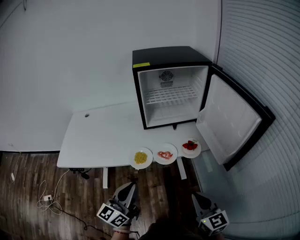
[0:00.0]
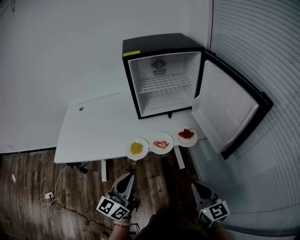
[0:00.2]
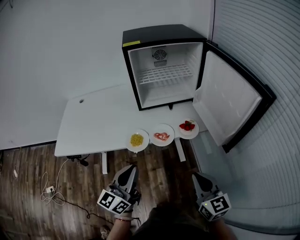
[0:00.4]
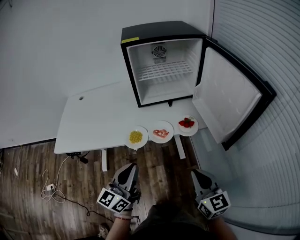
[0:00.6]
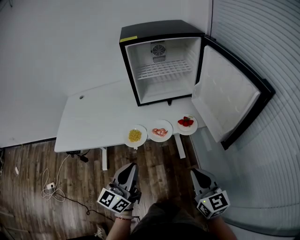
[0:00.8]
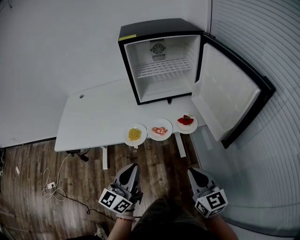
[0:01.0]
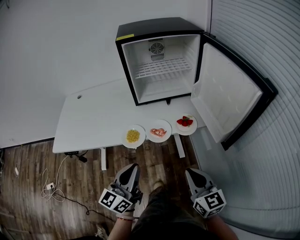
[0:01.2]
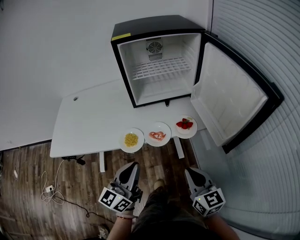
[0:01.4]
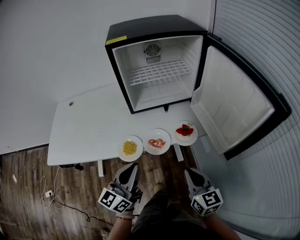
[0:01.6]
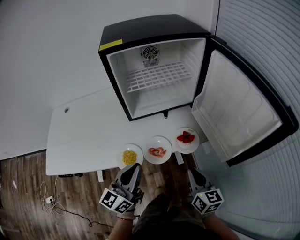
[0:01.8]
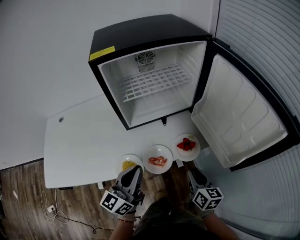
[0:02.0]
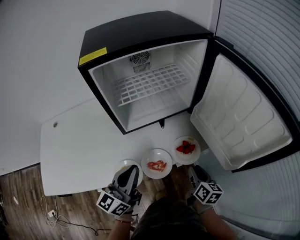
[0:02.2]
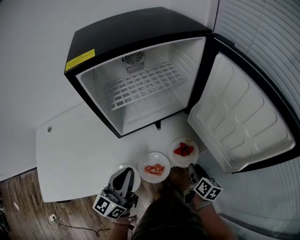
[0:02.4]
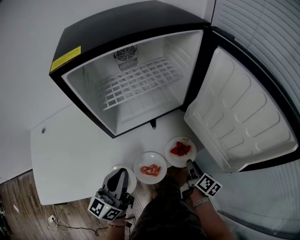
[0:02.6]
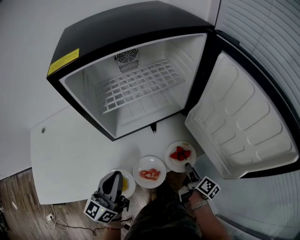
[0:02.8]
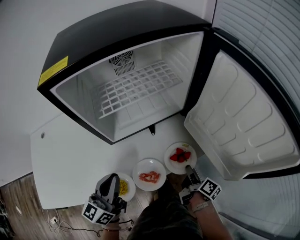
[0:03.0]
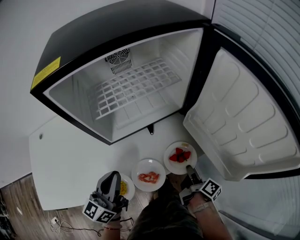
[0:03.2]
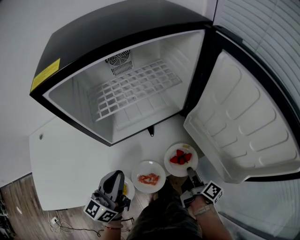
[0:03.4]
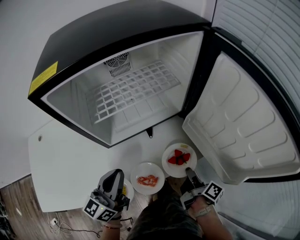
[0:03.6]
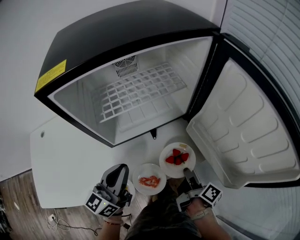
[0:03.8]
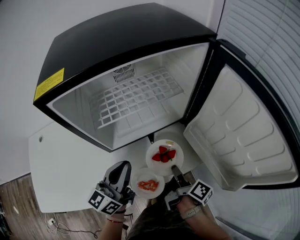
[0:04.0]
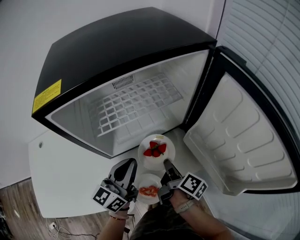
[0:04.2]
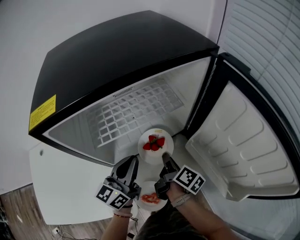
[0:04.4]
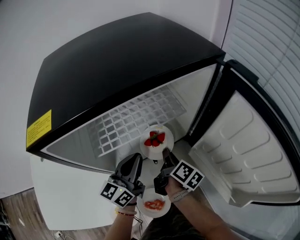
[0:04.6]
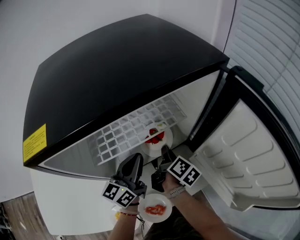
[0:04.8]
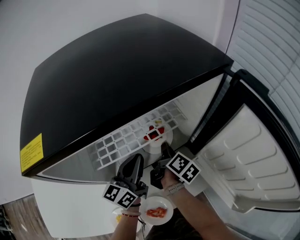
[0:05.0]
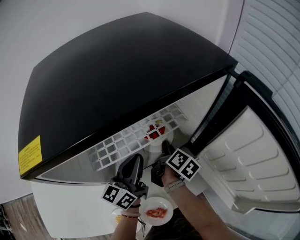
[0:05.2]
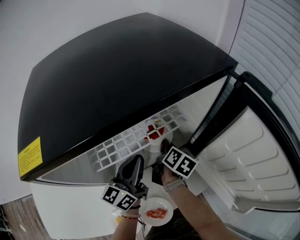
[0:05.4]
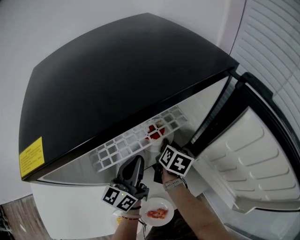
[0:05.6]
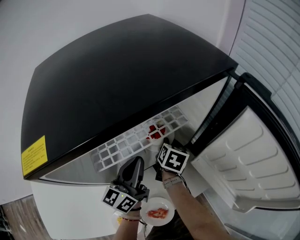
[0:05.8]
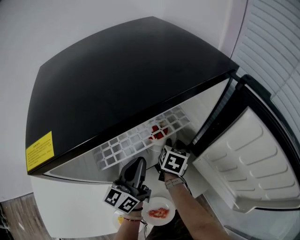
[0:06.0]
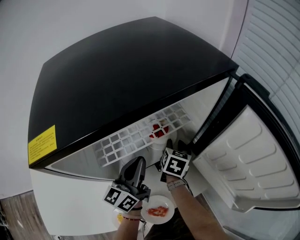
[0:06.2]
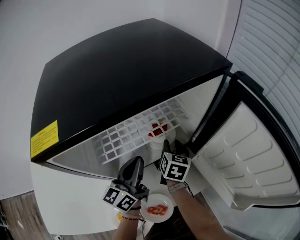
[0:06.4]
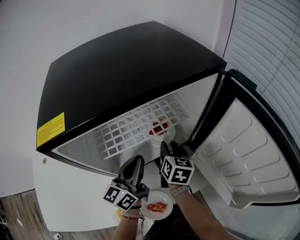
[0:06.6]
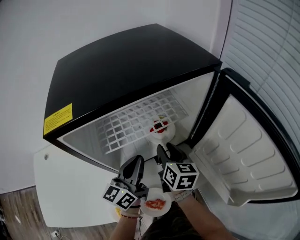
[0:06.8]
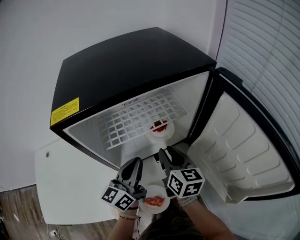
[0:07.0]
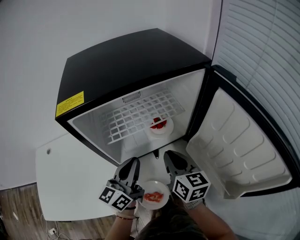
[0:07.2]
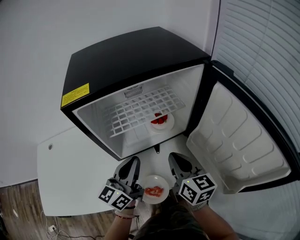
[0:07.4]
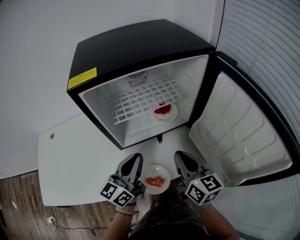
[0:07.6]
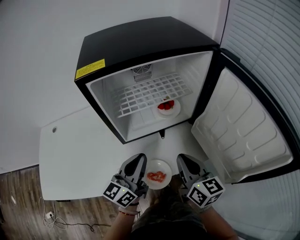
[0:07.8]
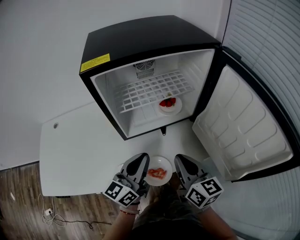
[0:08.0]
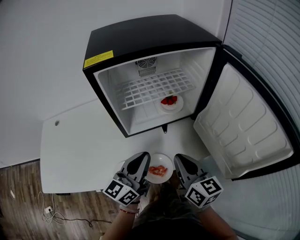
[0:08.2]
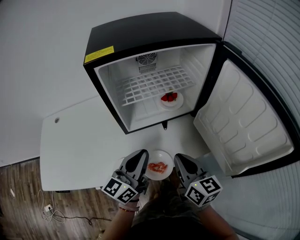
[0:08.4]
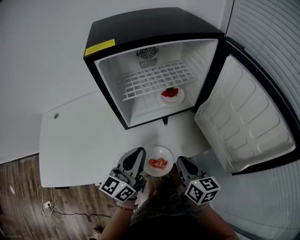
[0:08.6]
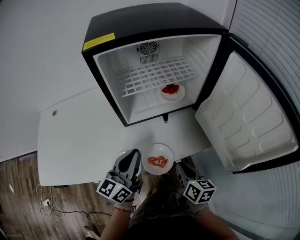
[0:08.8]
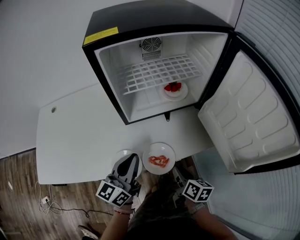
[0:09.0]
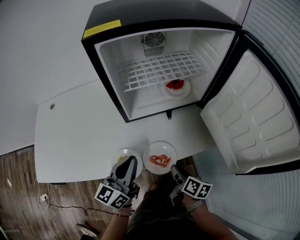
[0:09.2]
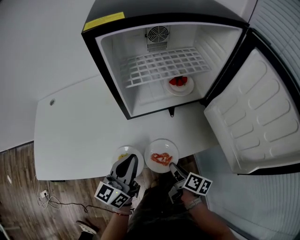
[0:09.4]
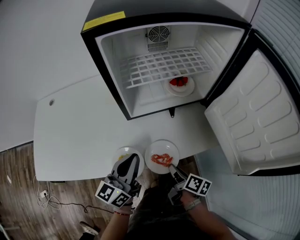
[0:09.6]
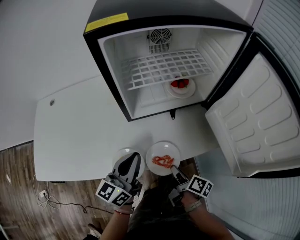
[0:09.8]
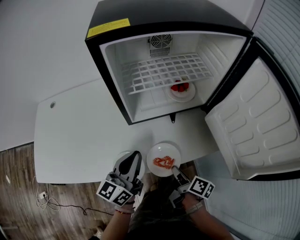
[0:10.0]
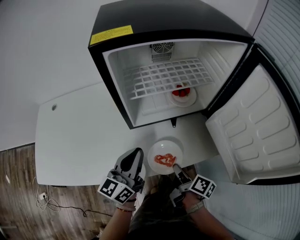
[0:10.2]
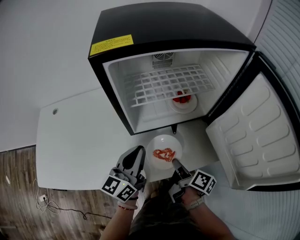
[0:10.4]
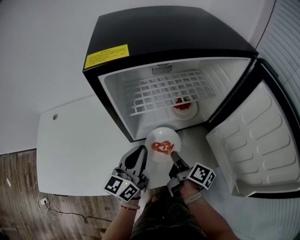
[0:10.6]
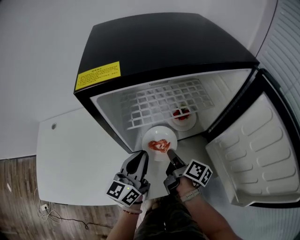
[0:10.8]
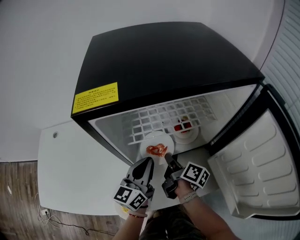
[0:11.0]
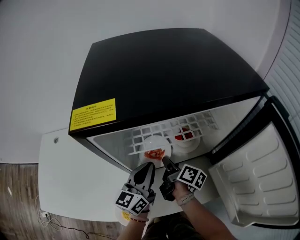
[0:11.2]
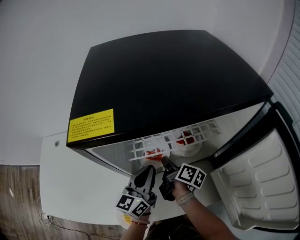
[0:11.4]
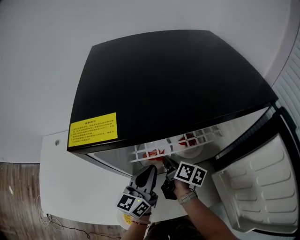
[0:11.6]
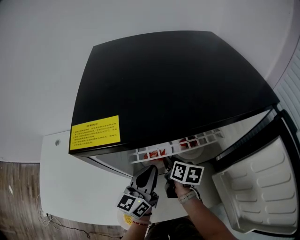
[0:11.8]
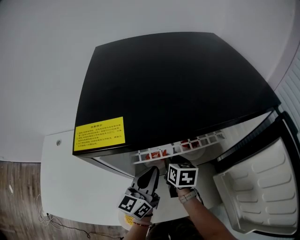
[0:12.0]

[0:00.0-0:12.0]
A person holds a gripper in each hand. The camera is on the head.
0:00.0 to 0:01.6: The left gripper goes about 10 cm forward and to the right; the right gripper travels forward and downward by roughly 15 cm.
0:01.6 to 0:03.0: The left gripper travels forward and to the left by some 20 cm. The right gripper shifts approximately 25 cm forward and downward, rotates around the line of its fingers by approximately 70 degrees, clockwise from behind, and opens, then closes again.
0:03.0 to 0:04.4: The right gripper is displaced forward, to the left and upward by some 20 cm. Meanwhile the left gripper goes approximately 15 cm forward.
0:04.4 to 0:06.0: The left gripper goes roughly 5 cm forward; the right gripper is displaced forward by some 15 cm, twists approximately 40 degrees counterclockwise, seen from behind, and opens its fingers.
0:06.0 to 0:07.6: The left gripper moves backward, approximately 15 cm. Meanwhile the right gripper moves backward and upward, some 30 cm, angles its fingers upward, by roughly 30 degrees, and closes.
0:07.6 to 0:09.0: The right gripper shifts approximately 25 cm downward and backward, rotates roughly 30 degrees, and opens up. The left gripper is displaced backward and downward by about 10 cm.
0:09.0 to 0:10.4: Both grippers move forward, about 10 cm. The right gripper swivels some 30 degrees.
0:10.4 to 0:12.0: The left gripper heads forward, covering approximately 15 cm, while the right gripper goes some 25 cm forward, and twists approximately 50 degrees counterclockwise, seen from behind.

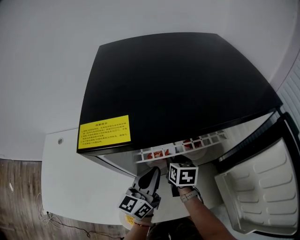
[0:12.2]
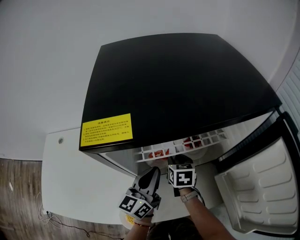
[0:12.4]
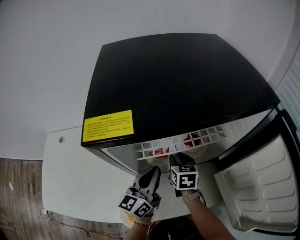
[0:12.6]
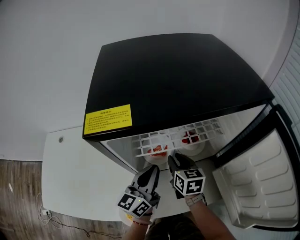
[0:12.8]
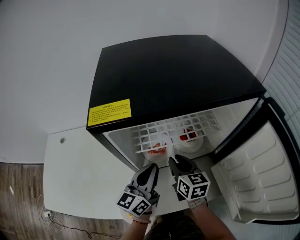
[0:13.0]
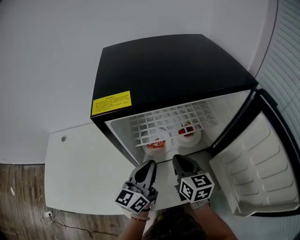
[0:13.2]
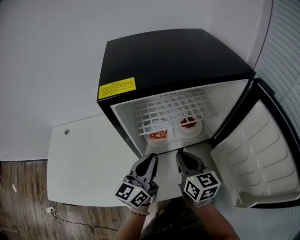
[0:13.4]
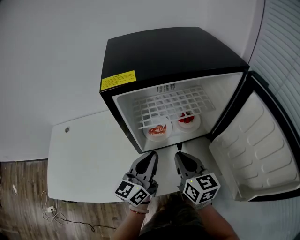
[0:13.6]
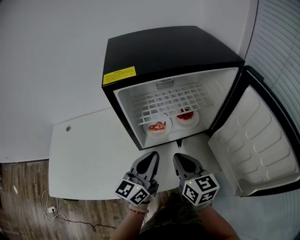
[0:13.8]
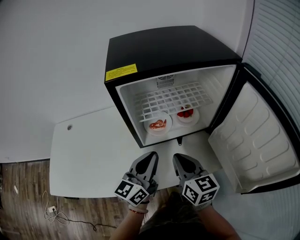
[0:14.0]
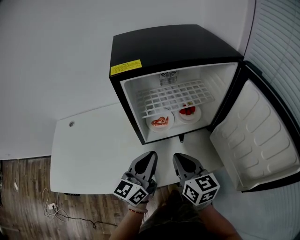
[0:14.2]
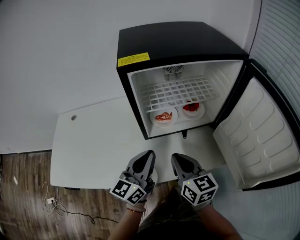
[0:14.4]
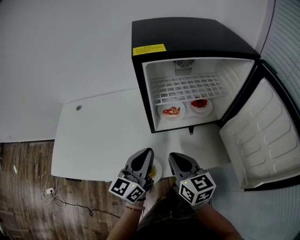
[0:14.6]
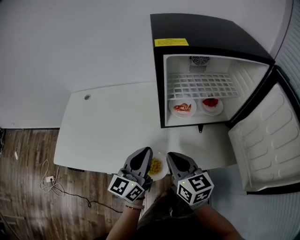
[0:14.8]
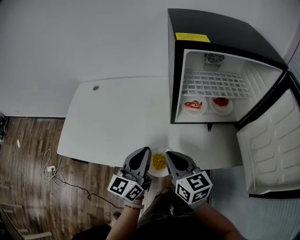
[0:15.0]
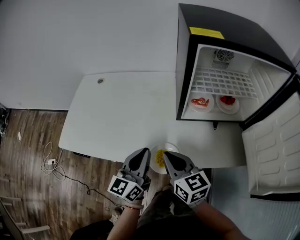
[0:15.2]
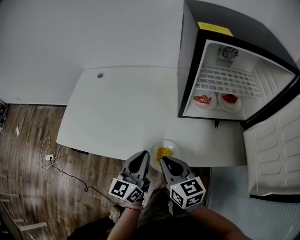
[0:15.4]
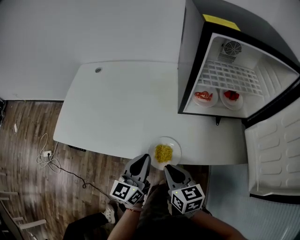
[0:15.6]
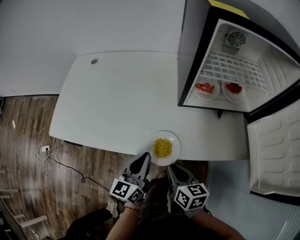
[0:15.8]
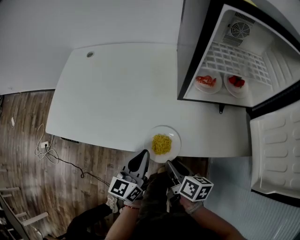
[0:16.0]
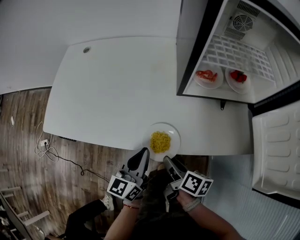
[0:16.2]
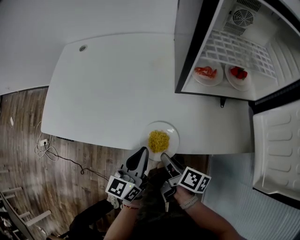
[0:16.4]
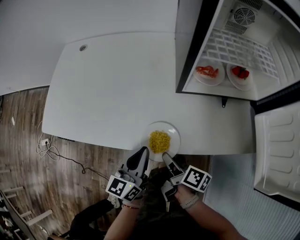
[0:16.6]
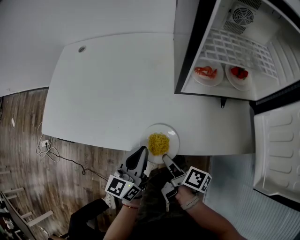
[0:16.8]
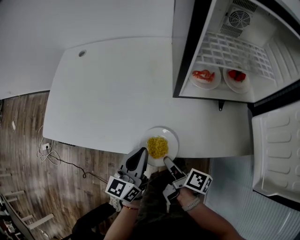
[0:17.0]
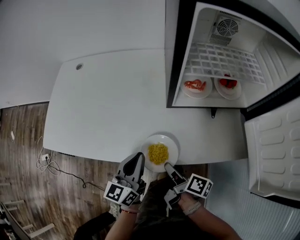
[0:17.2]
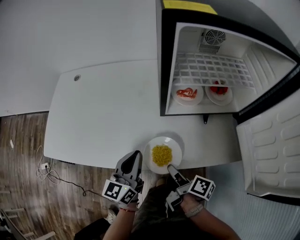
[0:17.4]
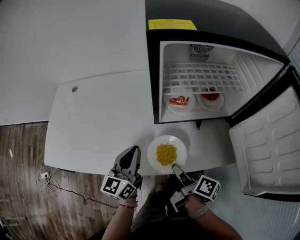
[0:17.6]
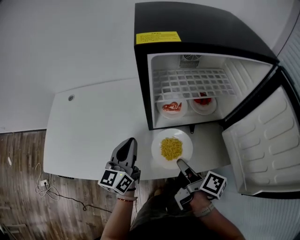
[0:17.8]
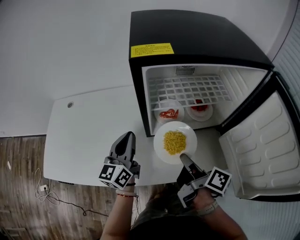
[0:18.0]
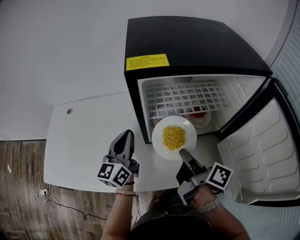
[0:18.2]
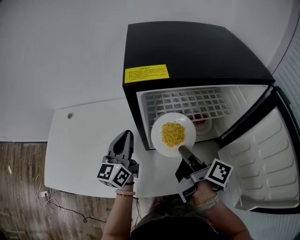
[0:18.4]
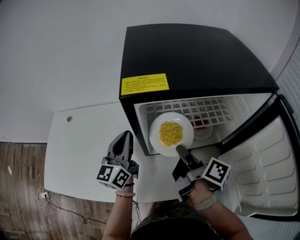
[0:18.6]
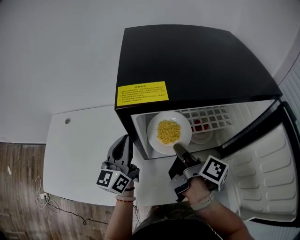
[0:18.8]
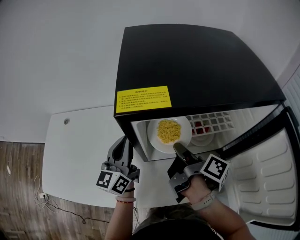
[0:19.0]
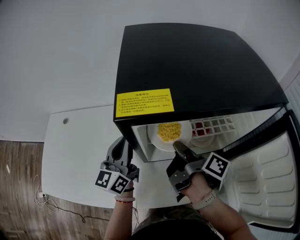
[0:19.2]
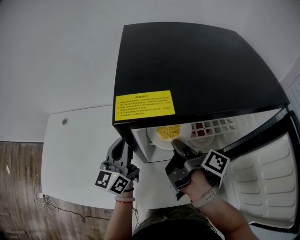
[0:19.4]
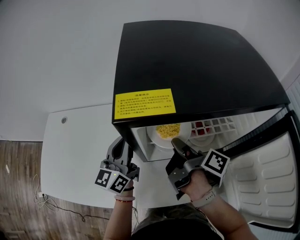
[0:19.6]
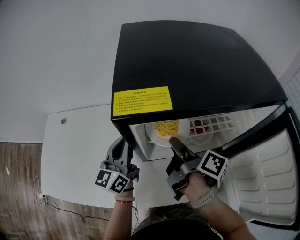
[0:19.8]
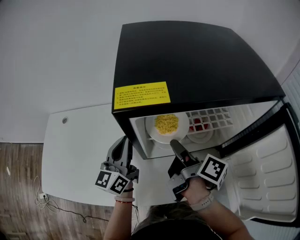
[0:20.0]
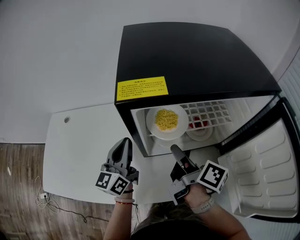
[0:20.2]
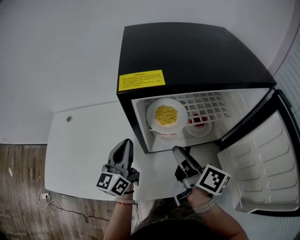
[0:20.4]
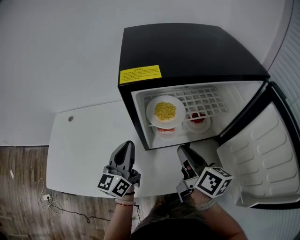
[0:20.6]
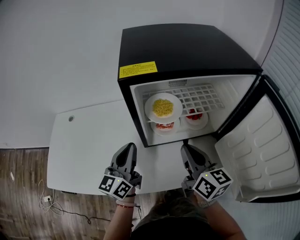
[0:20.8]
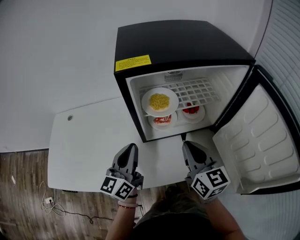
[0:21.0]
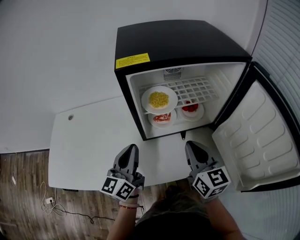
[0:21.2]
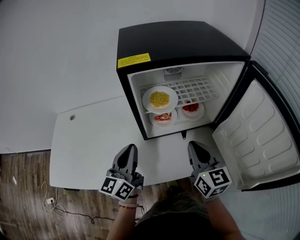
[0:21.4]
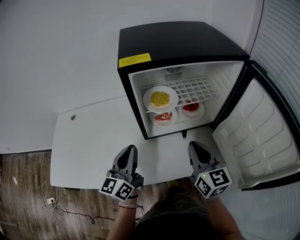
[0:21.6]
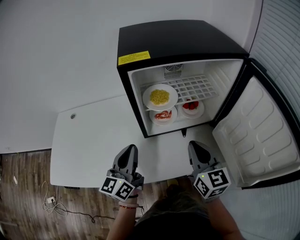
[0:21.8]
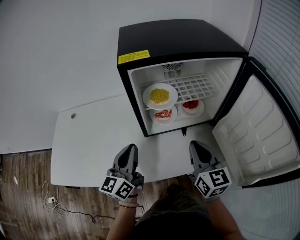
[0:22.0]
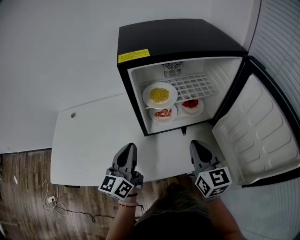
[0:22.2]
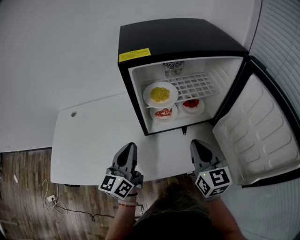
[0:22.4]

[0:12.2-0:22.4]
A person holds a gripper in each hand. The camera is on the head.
0:12.2 to 0:13.6: The right gripper moves backward and upward, approximately 20 cm, swivels roughly 30 degrees, and closes up; the left gripper heads backward and upward, covering some 10 cm.
0:13.6 to 0:15.2: Both grippers move to the left and backward, some 25 cm. The left gripper swivels about 20 degrees. Meanwhile the right gripper rotates roughly 30 degrees.
0:15.2 to 0:16.6: Both grippers move downward, about 15 cm. The right gripper rotates around the line of its fingers by approximately 70 degrees, clockwise from behind, and opens up.
0:16.6 to 0:18.0: The left gripper travels forward and upward by approximately 20 cm. Meanwhile the right gripper heads upward, to the right and forward, covering roughly 25 cm, swivels roughly 20 degrees, and closes up.
0:18.0 to 0:19.4: The left gripper shifts some 10 cm forward; the right gripper is displaced forward by roughly 15 cm.
0:19.4 to 0:21.0: Both grippers move backward, some 15 cm. The right gripper rotates around the line of its fingers by roughly 80 degrees, counterclockwise from behind, and opens, then closes again.
0:21.0 to 0:22.4: The grippers move only a little.

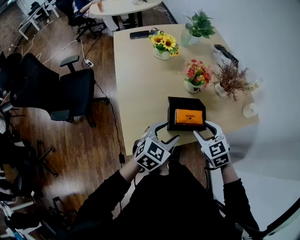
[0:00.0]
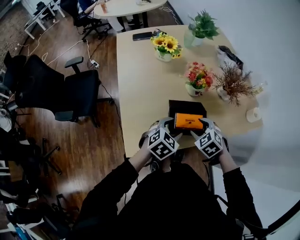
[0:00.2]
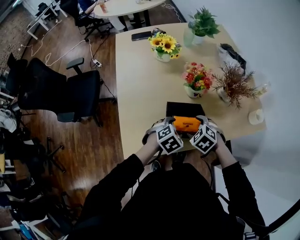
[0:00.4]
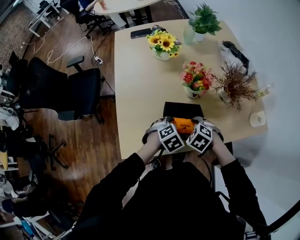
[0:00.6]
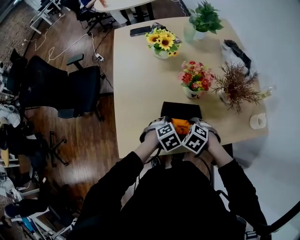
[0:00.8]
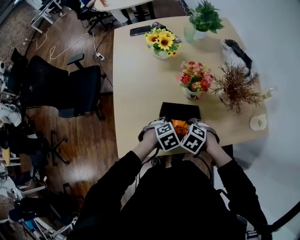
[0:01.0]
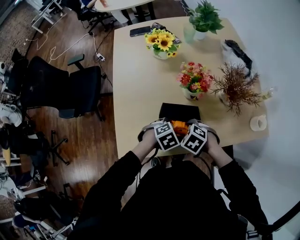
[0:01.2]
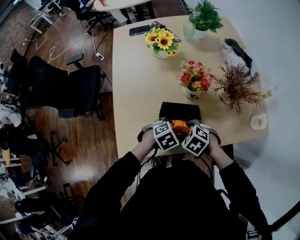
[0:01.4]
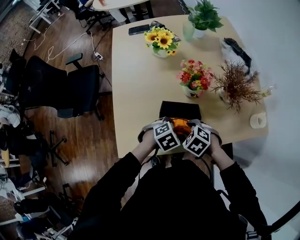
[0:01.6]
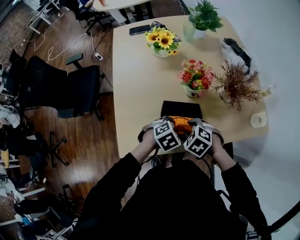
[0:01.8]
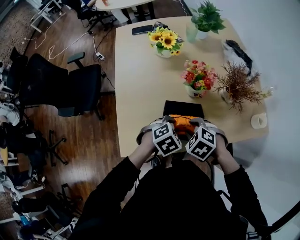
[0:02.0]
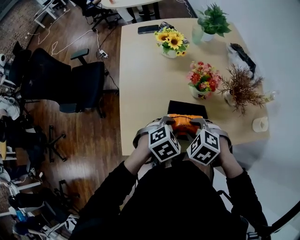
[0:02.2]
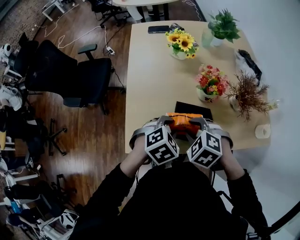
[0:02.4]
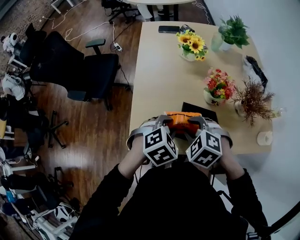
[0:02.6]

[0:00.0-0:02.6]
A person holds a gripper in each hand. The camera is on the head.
0:00.0 to 0:01.2: The two grippers go roughly 15 cm downward. The left gripper tilts its fingers approximately 40 degrees downward; the right gripper rotates about 40 degrees.
0:01.2 to 0:02.6: The grippers both shift upward by approximately 15 cm. The right gripper swivels some 20 degrees; the left gripper swivels roughly 20 degrees.
